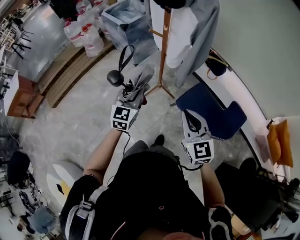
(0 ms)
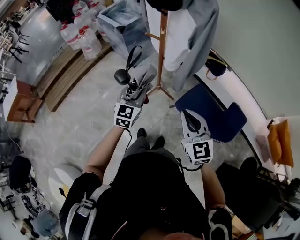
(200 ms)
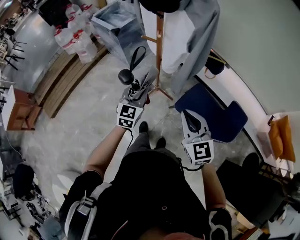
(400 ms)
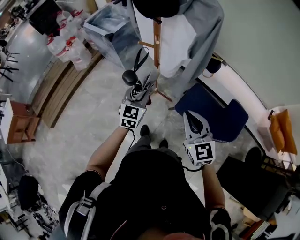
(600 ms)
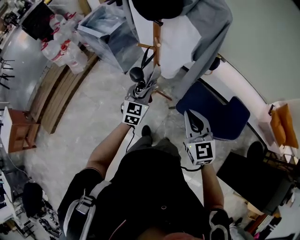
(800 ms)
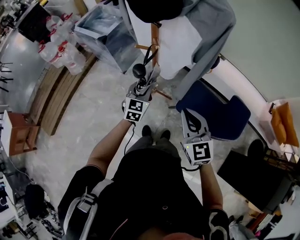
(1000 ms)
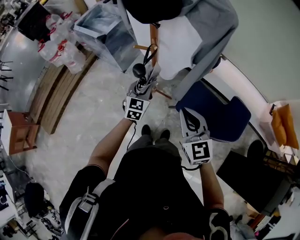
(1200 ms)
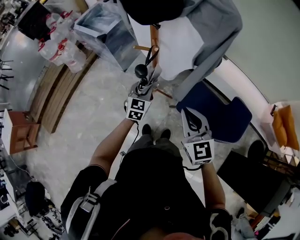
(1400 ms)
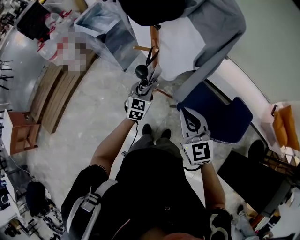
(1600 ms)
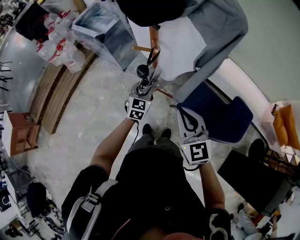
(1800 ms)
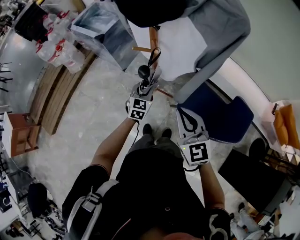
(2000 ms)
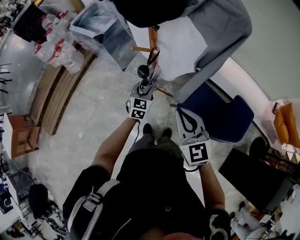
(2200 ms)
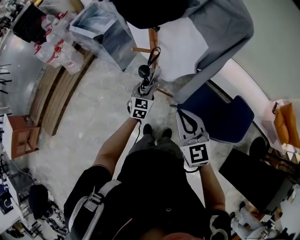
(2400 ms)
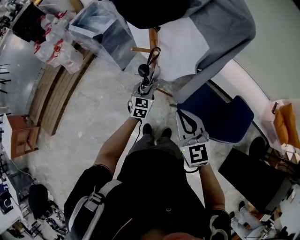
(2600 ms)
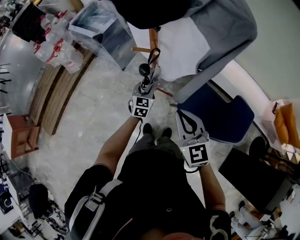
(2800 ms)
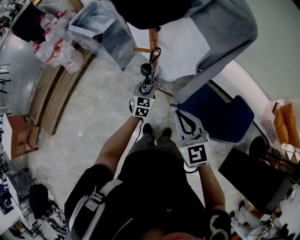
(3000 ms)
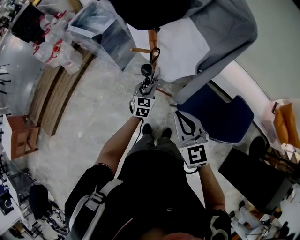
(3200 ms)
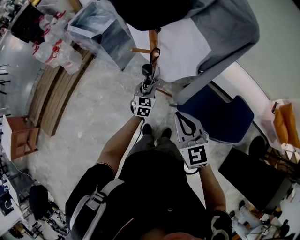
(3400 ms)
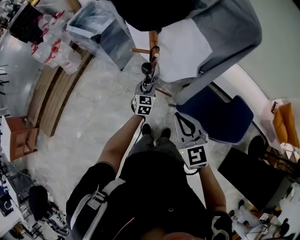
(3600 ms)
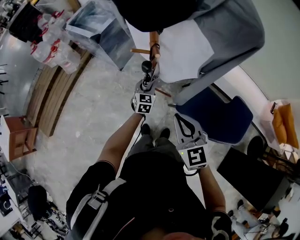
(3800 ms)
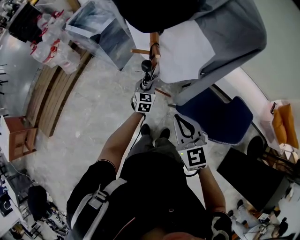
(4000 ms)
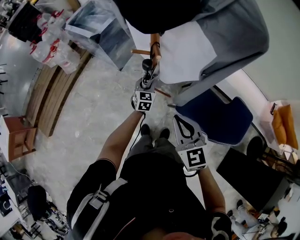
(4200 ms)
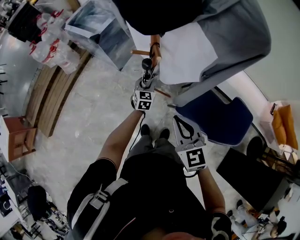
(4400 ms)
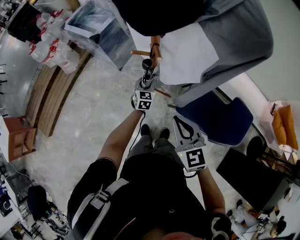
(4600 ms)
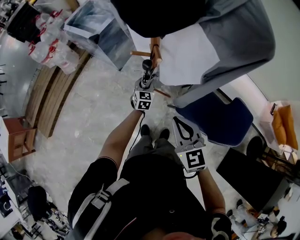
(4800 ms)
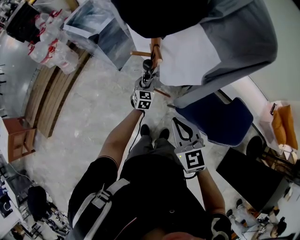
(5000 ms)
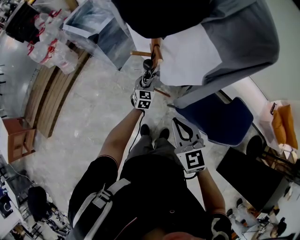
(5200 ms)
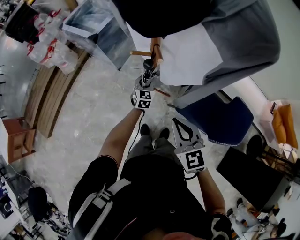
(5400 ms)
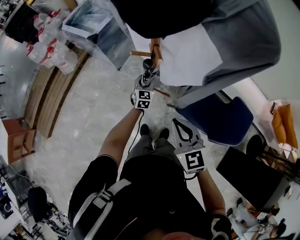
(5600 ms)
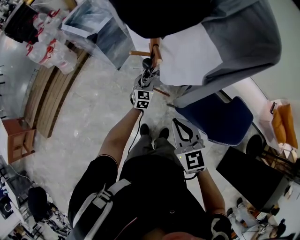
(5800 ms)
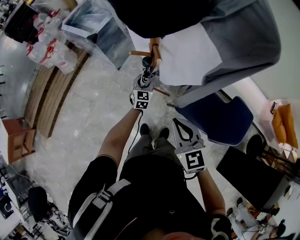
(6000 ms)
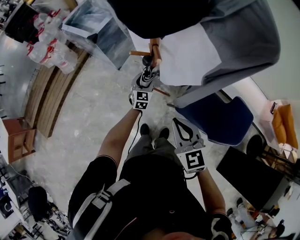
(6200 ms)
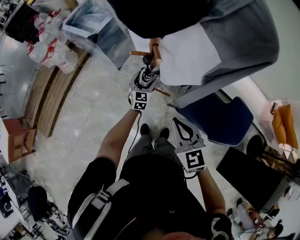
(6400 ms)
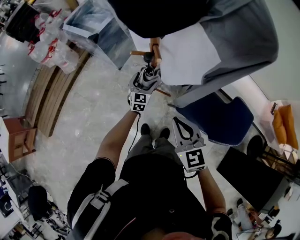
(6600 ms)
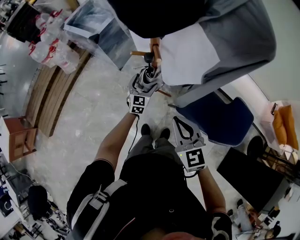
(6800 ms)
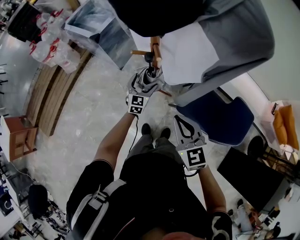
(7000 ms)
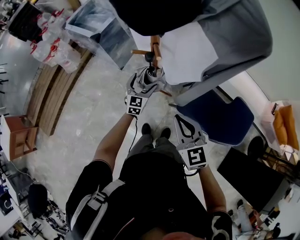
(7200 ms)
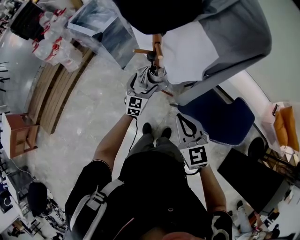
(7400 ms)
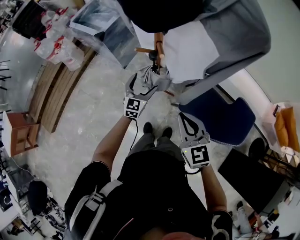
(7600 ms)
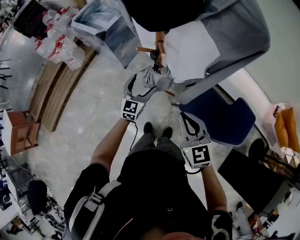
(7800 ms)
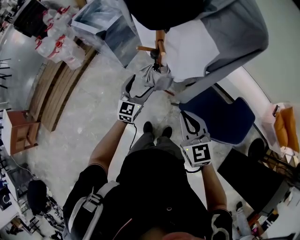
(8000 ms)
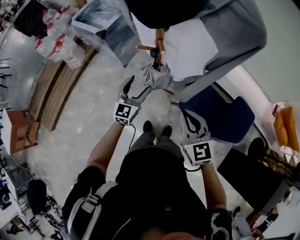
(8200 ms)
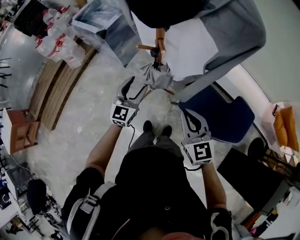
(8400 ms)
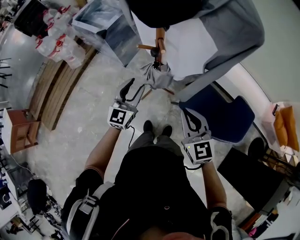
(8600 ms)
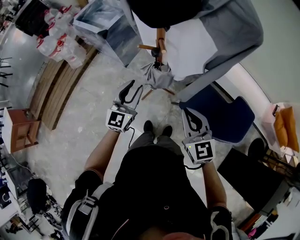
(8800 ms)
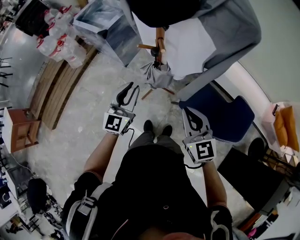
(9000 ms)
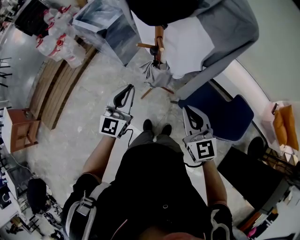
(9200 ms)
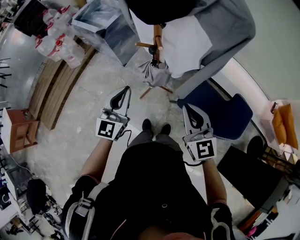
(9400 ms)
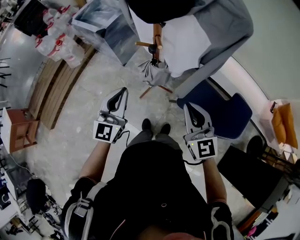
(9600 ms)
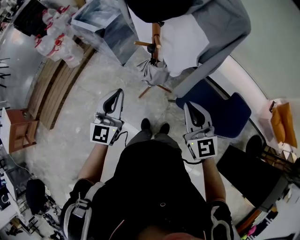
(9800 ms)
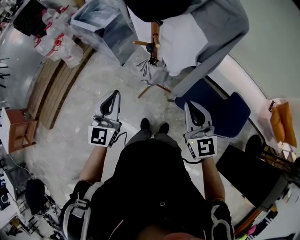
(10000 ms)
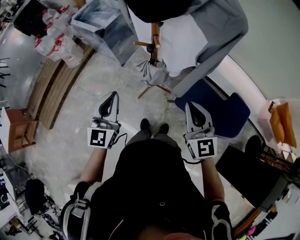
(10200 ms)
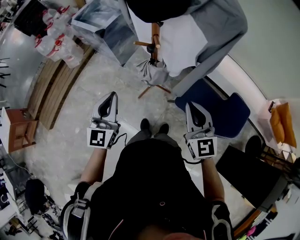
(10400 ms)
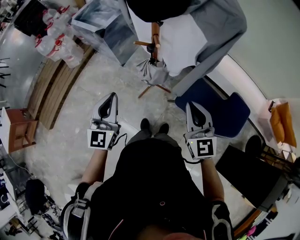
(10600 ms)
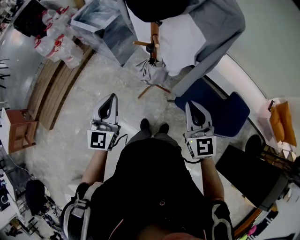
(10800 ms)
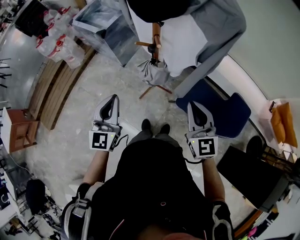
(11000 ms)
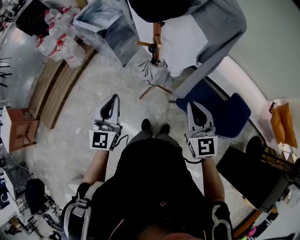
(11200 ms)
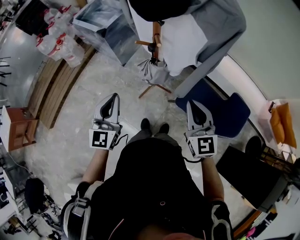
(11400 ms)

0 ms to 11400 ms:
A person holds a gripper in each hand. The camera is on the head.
0 ms to 1400 ms: The right gripper heads forward, covering roughly 15 cm; the left gripper shifts roughly 25 cm forward and downward.
1400 ms to 2800 ms: The left gripper travels downward by approximately 5 cm.
2800 ms to 4200 ms: The left gripper shifts by some 5 cm.
4200 ms to 5600 ms: The grippers stay close to where they were, moving slightly.
5600 ms to 7200 ms: The left gripper ends up about 5 cm from where it was, and opens up.
7200 ms to 8600 ms: The left gripper shifts some 15 cm upward and backward, and closes.
8600 ms to 10000 ms: The right gripper shifts by roughly 5 cm, while the left gripper shifts roughly 15 cm upward and backward, and closes its fingers.
10000 ms to 11400 ms: There are only small adjustments of the grippers.

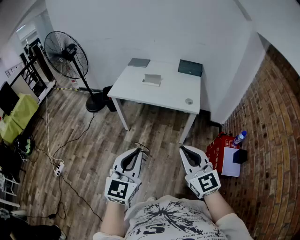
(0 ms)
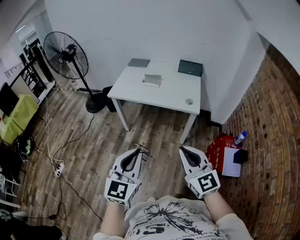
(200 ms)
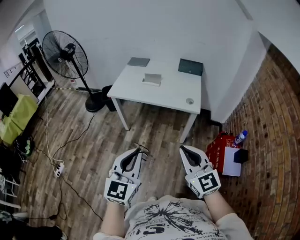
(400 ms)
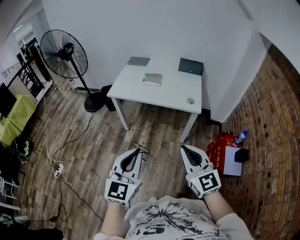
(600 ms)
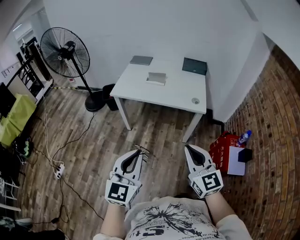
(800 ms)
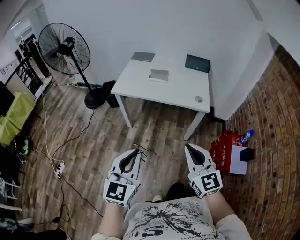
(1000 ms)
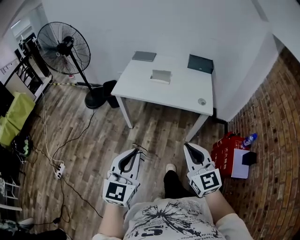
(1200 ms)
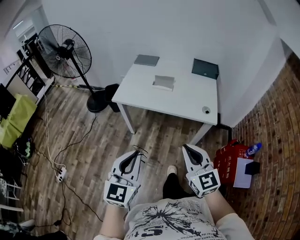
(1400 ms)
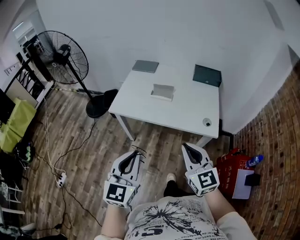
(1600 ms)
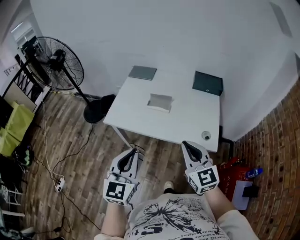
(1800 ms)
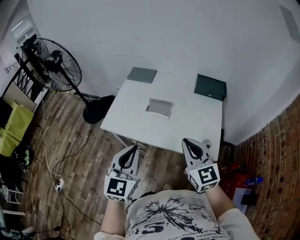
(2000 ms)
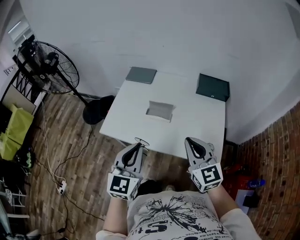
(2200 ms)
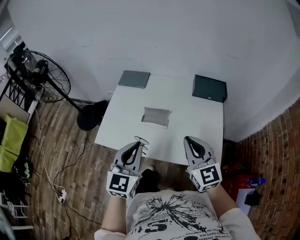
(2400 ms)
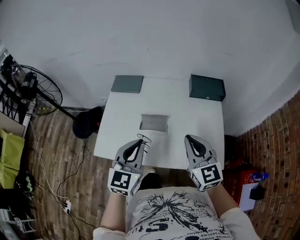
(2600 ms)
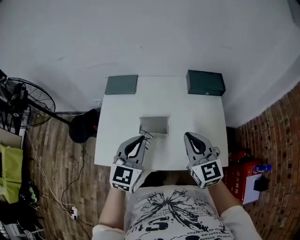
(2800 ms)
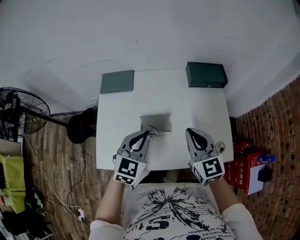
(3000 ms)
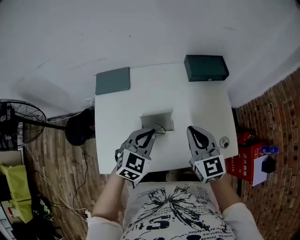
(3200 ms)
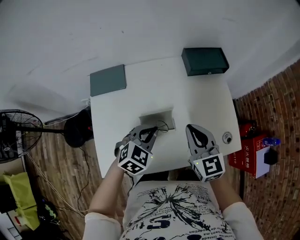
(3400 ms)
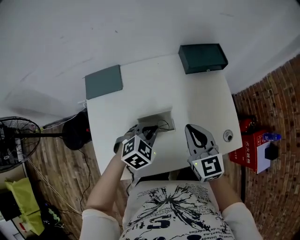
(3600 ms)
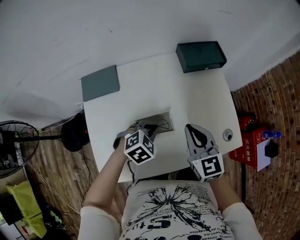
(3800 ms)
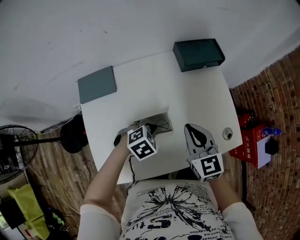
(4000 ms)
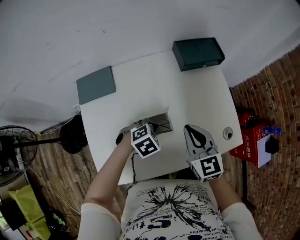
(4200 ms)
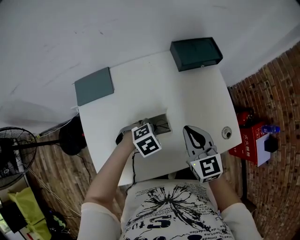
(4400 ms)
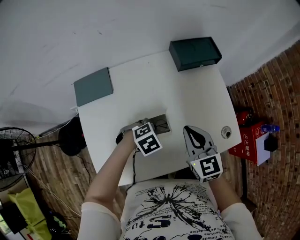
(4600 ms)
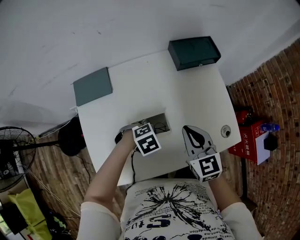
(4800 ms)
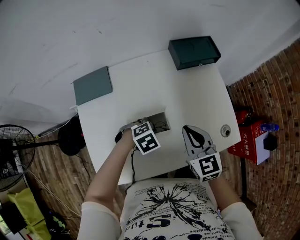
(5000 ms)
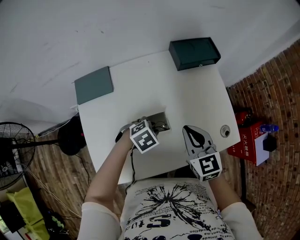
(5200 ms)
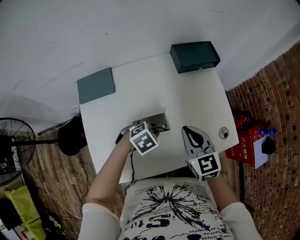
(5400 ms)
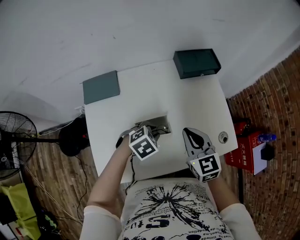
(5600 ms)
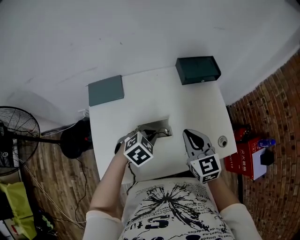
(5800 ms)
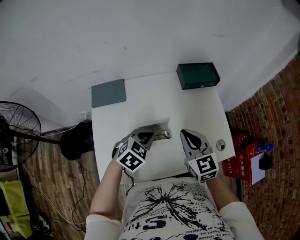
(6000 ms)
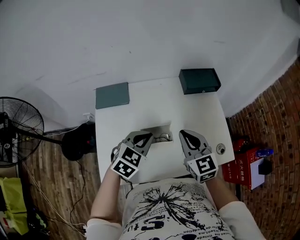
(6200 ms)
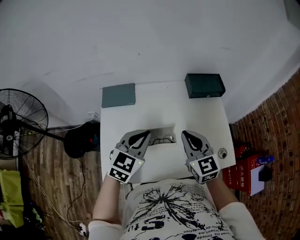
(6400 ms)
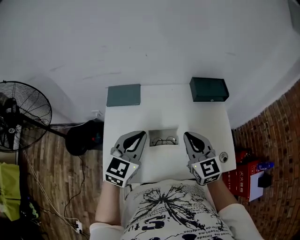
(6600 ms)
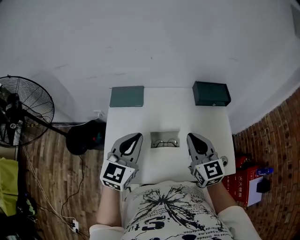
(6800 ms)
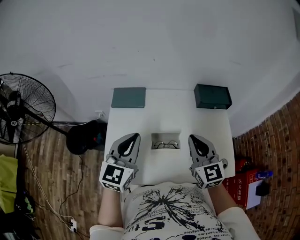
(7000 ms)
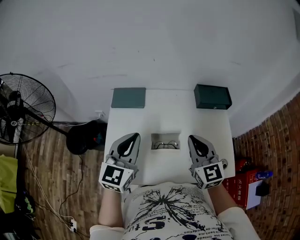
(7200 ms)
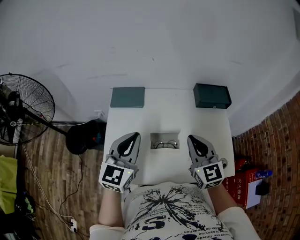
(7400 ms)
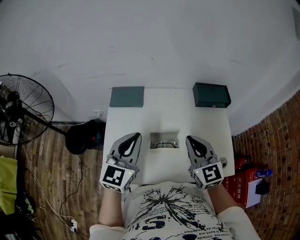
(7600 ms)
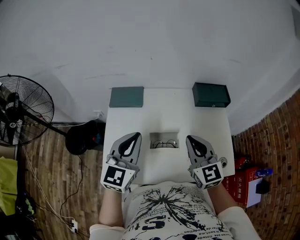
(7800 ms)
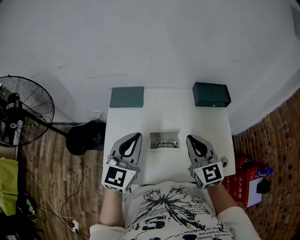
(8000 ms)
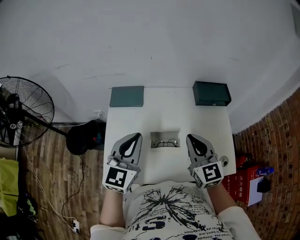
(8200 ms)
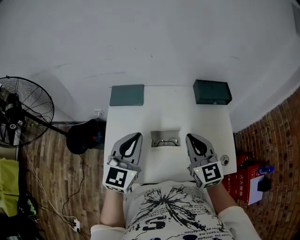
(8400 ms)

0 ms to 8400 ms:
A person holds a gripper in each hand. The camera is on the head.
0 ms to 1400 ms: The right gripper travels forward by about 20 cm. Meanwhile the left gripper heads forward and to the left, covering some 20 cm.
1400 ms to 2800 ms: The pair of grippers is taken forward, approximately 50 cm.
2800 ms to 4200 ms: The left gripper heads downward, covering about 25 cm, and angles its fingers downward, by some 50 degrees. Meanwhile the right gripper heads downward, covering some 10 cm, and changes its angle by some 20 degrees.
4200 ms to 5600 ms: The left gripper opens up.
5600 ms to 7000 ms: The right gripper heads upward, covering about 10 cm. Meanwhile the left gripper moves upward, about 25 cm, points its fingers about 50 degrees further upward, and closes.
7000 ms to 8400 ms: Both grippers stay put.

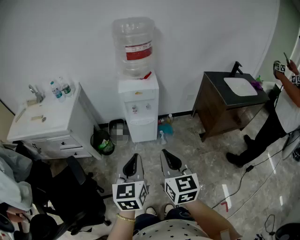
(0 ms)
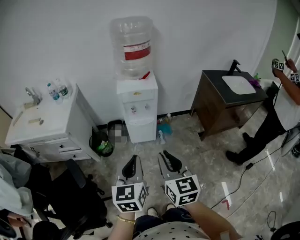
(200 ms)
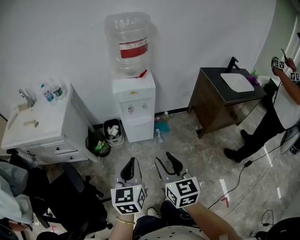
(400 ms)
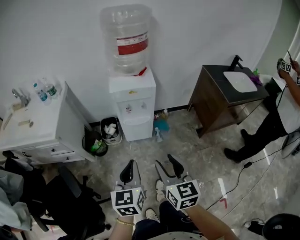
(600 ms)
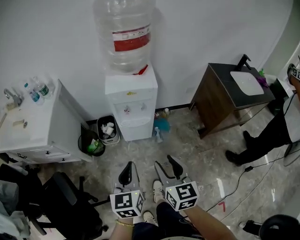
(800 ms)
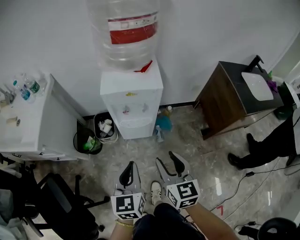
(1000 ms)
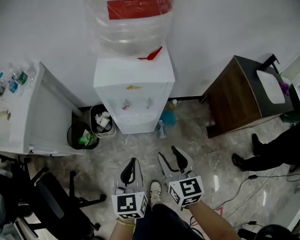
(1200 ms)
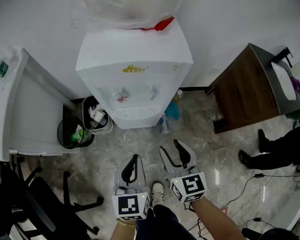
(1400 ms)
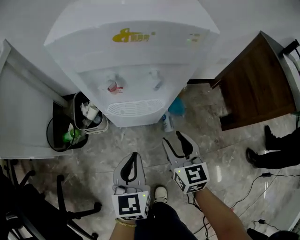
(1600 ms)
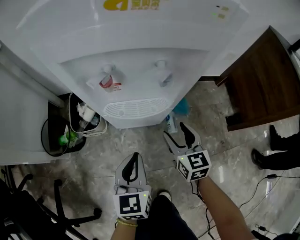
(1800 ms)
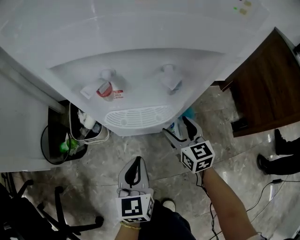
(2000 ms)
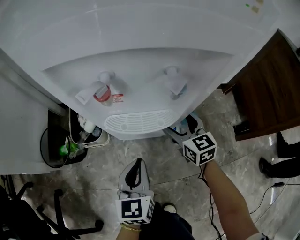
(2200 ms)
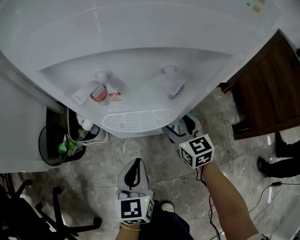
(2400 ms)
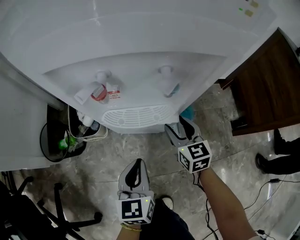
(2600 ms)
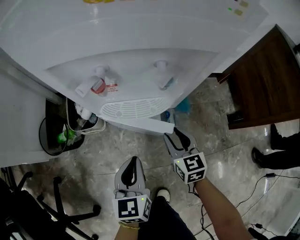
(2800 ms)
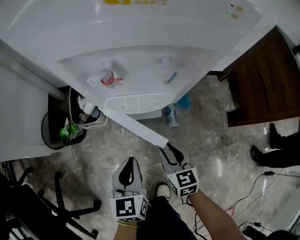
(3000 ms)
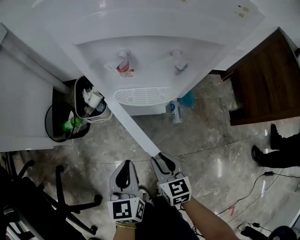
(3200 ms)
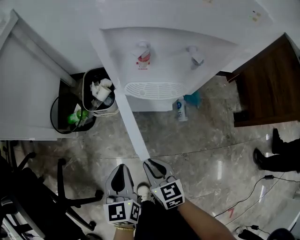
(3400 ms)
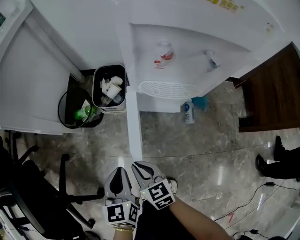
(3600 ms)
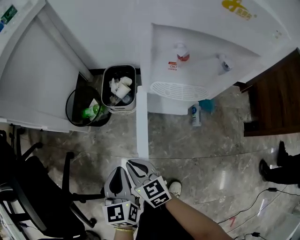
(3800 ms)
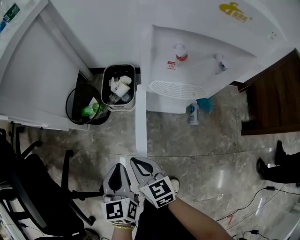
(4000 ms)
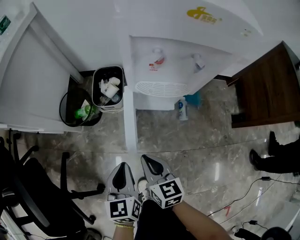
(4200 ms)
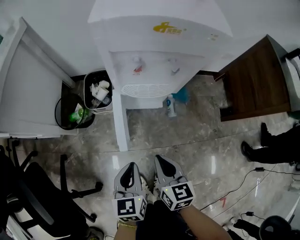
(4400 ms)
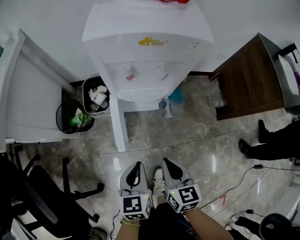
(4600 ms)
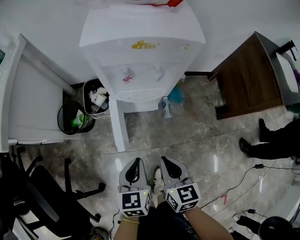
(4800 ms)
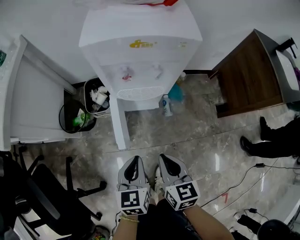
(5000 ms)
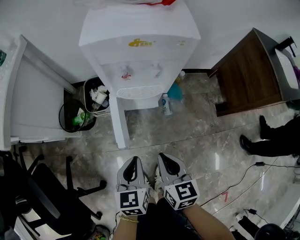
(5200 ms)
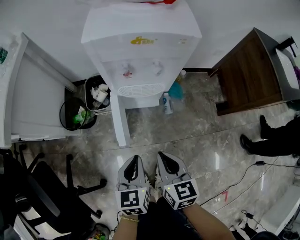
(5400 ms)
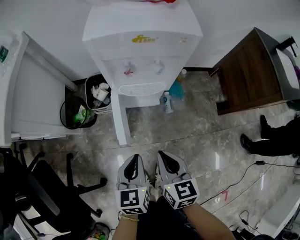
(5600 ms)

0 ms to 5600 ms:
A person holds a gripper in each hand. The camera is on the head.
0 ms to 1400 ms: Both grippers move downward and forward, approximately 50 cm. The right gripper opens.
1400 ms to 2800 ms: The grippers both shift downward by roughly 25 cm. The right gripper opens, then closes again.
2800 ms to 4200 ms: The right gripper moves approximately 25 cm, and closes. The left gripper changes place by some 20 cm.
4200 ms to 5600 ms: The grippers both shift upward and to the right by about 15 cm.
